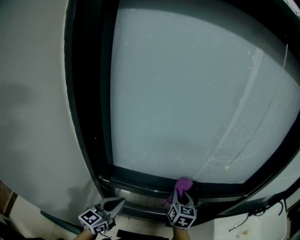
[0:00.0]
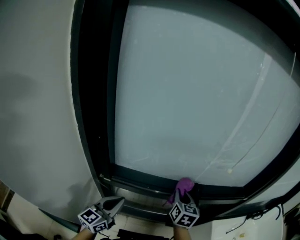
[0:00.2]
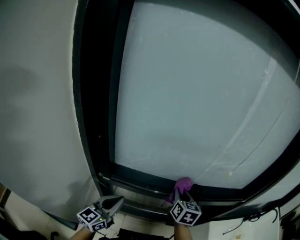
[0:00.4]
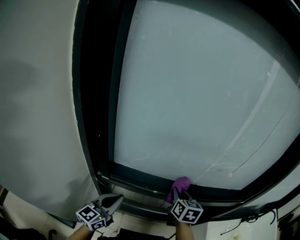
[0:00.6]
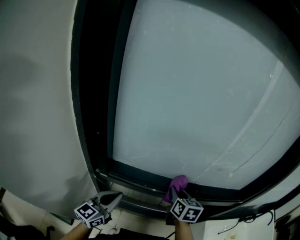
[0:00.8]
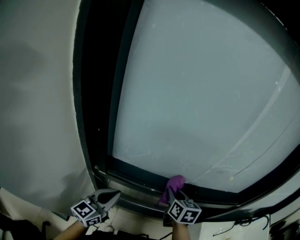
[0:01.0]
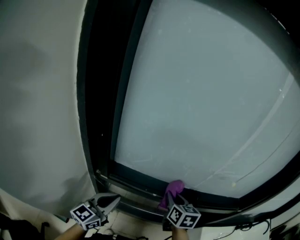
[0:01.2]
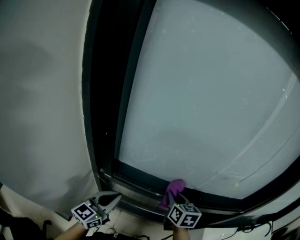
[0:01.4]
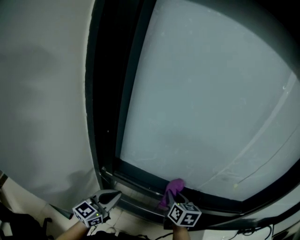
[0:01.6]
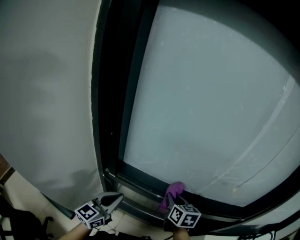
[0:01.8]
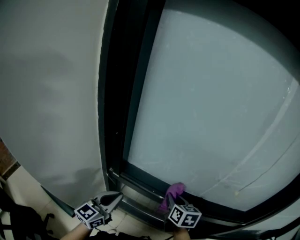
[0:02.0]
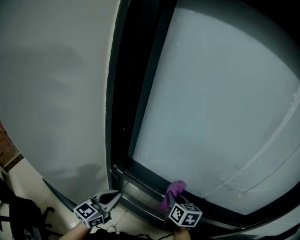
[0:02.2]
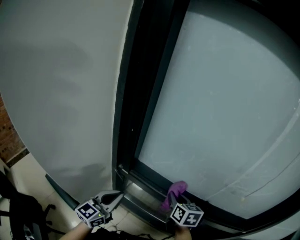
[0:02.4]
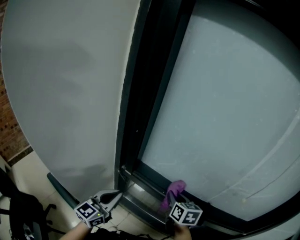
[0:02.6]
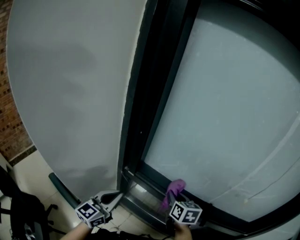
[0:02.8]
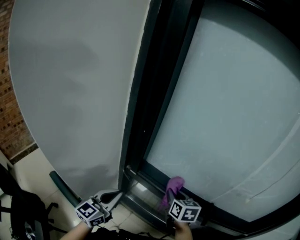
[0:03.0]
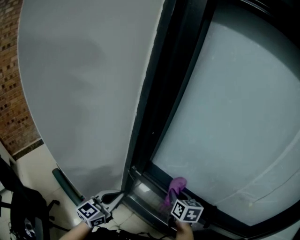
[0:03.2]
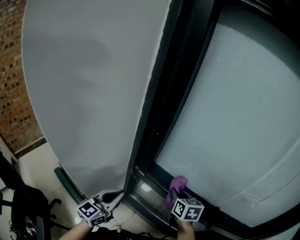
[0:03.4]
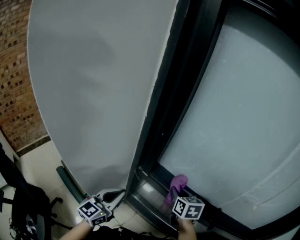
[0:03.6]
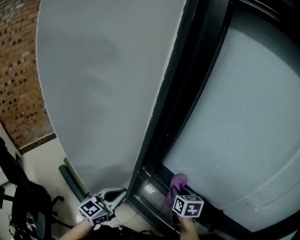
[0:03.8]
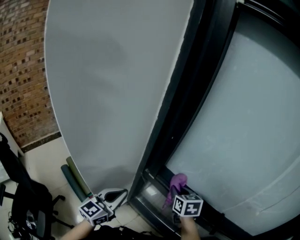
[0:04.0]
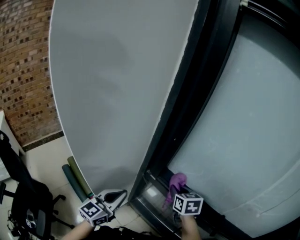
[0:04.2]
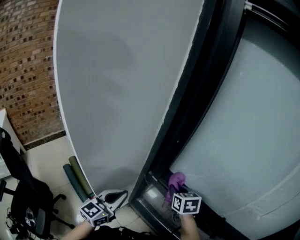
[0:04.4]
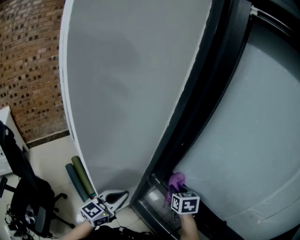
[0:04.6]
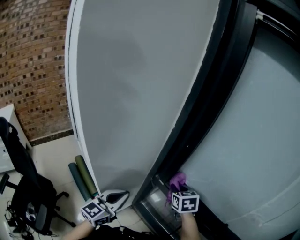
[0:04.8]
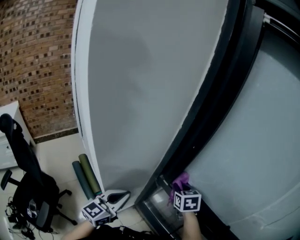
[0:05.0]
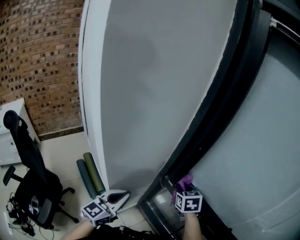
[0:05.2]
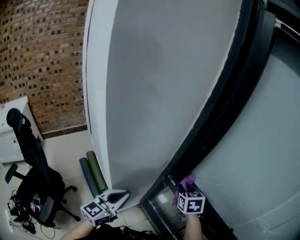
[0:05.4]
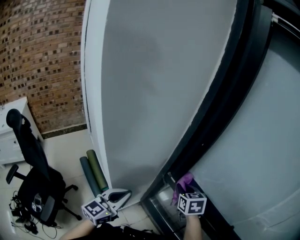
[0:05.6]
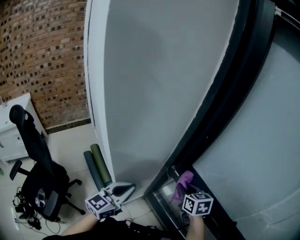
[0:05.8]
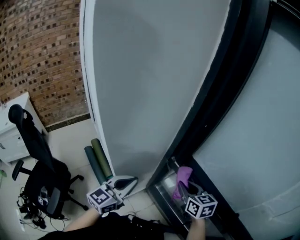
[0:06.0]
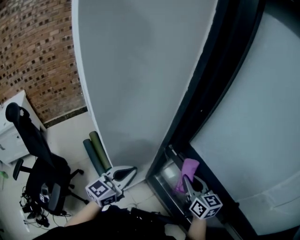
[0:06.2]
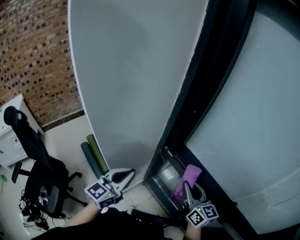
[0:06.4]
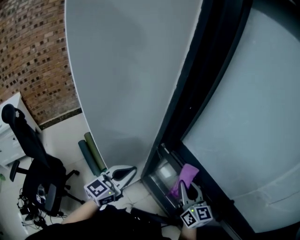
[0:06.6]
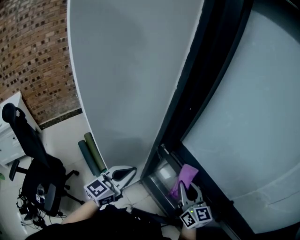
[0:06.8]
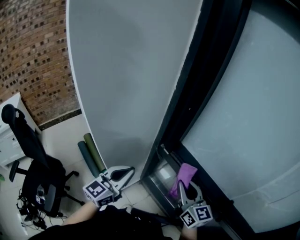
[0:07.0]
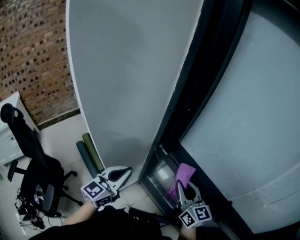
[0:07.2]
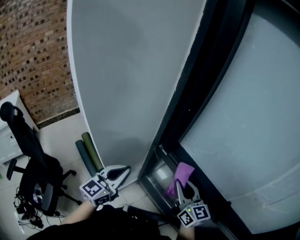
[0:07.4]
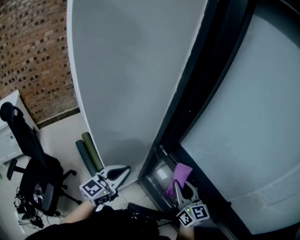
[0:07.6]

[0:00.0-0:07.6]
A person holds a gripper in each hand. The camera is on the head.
0:00.0 to 0:01.6: The right gripper moves to the left, about 5 cm, and swivels about 20 degrees.
0:01.6 to 0:03.0: Both grippers move to the left, some 5 cm.
0:03.0 to 0:04.6: The left gripper shifts about 5 cm to the left. Meanwhile the right gripper shifts approximately 10 cm to the left, and rotates approximately 30 degrees.
0:04.6 to 0:06.0: The right gripper travels backward by about 10 cm, and changes its angle by some 20 degrees.
0:06.0 to 0:07.6: The right gripper shifts roughly 5 cm backward, and swivels roughly 20 degrees.

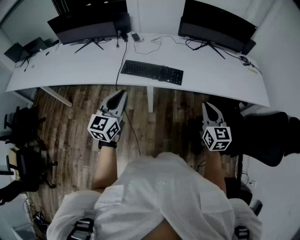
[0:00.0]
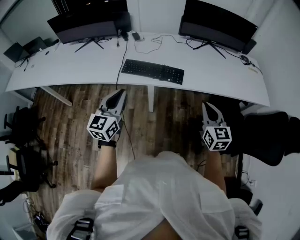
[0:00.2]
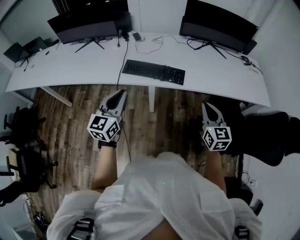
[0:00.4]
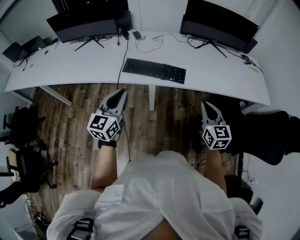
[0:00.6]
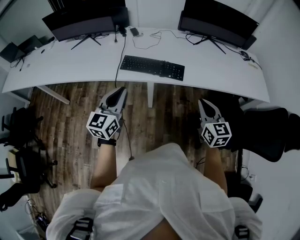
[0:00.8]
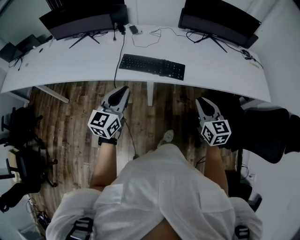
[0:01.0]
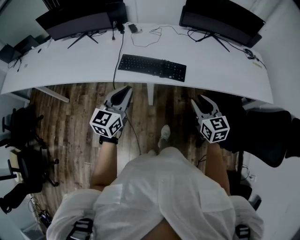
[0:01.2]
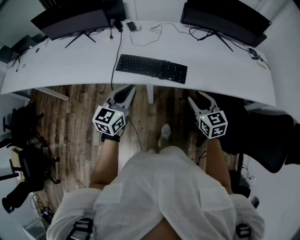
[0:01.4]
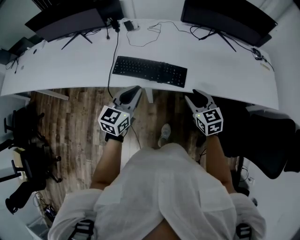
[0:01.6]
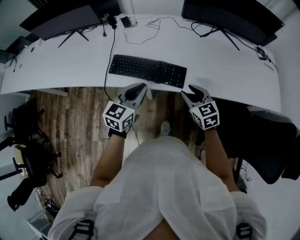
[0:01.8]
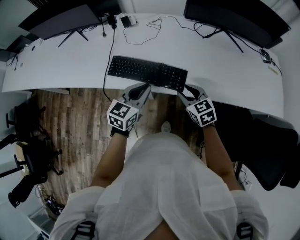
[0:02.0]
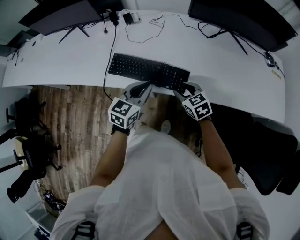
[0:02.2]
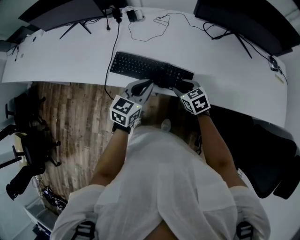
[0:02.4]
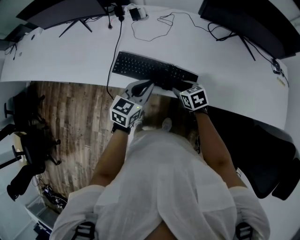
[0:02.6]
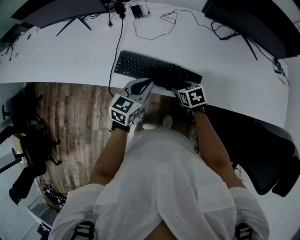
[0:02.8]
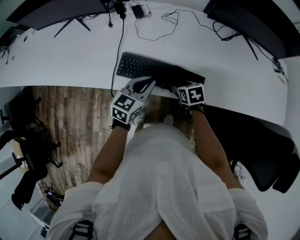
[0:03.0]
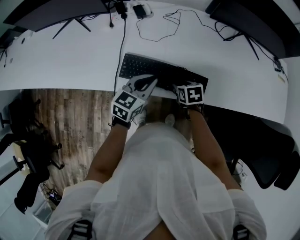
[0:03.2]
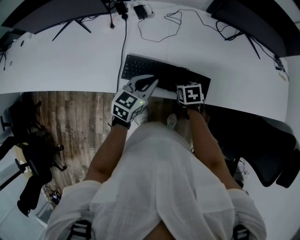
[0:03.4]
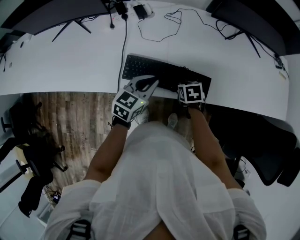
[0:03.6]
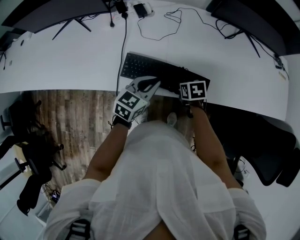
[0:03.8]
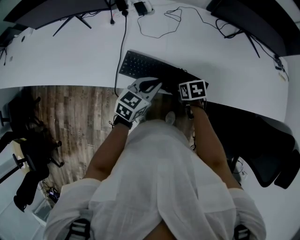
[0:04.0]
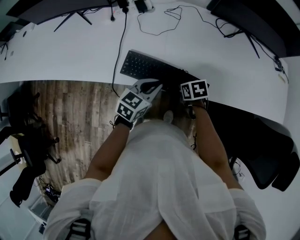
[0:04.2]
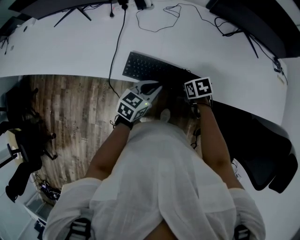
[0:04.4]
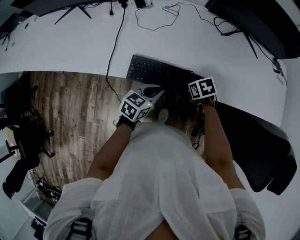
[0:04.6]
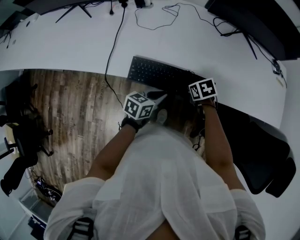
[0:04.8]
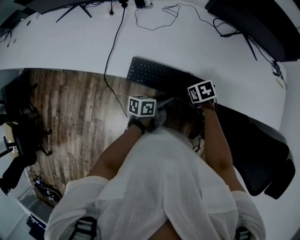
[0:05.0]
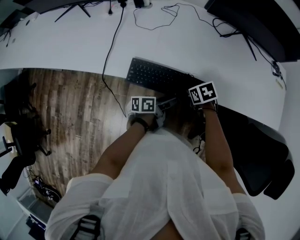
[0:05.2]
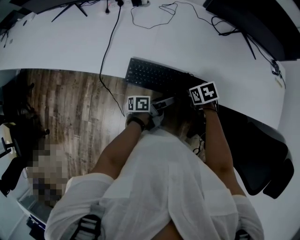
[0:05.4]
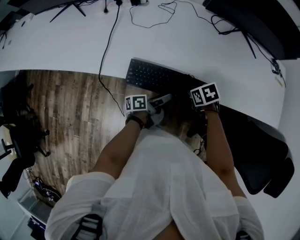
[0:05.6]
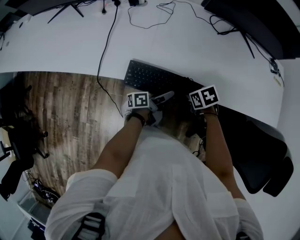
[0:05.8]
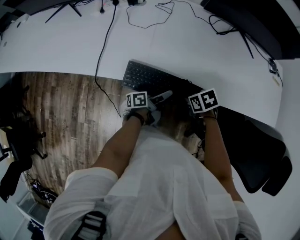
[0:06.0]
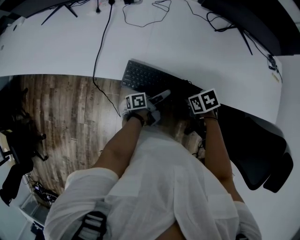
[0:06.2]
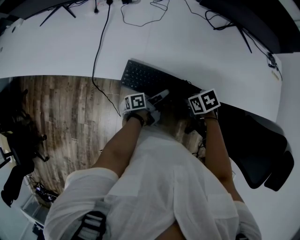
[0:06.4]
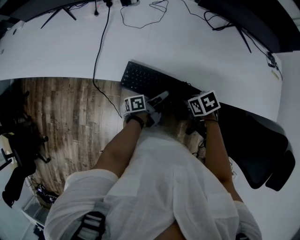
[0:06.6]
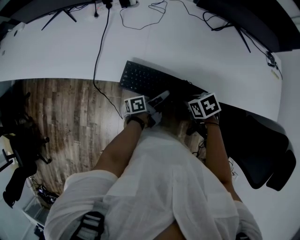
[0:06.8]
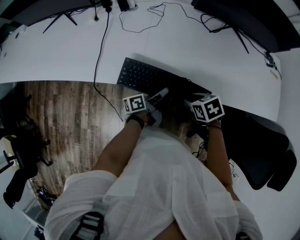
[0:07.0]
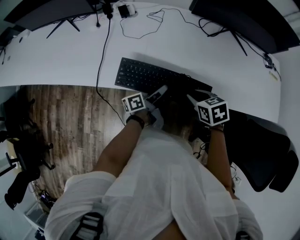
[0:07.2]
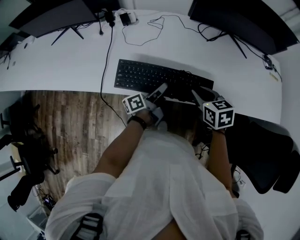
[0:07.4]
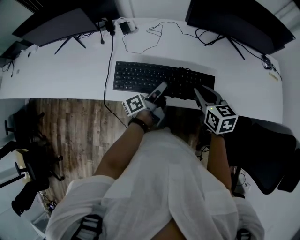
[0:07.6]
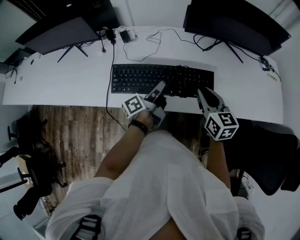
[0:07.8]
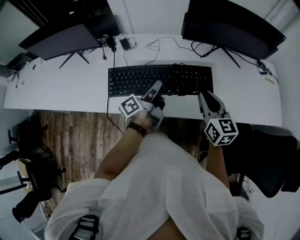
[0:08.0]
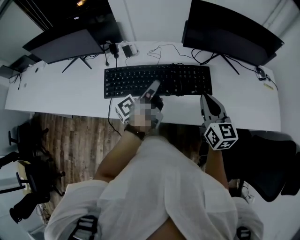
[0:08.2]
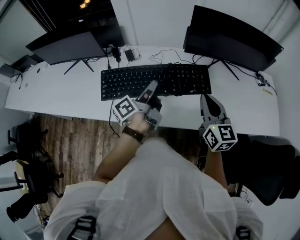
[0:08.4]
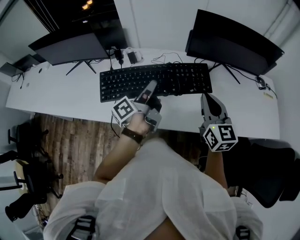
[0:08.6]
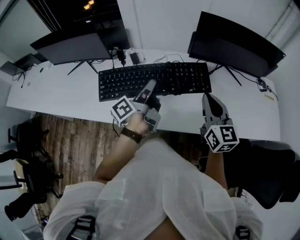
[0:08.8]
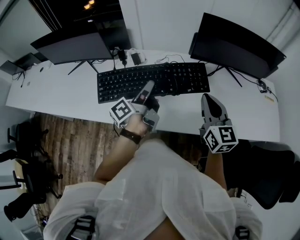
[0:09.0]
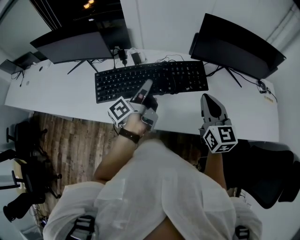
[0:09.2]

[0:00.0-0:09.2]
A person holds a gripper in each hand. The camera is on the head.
0:00.0 to 0:01.6: The right gripper heads forward and downward, covering about 20 cm, swivels about 20 degrees, and opens. Meanwhile the left gripper is displaced forward, downward and to the right by roughly 20 cm.
0:01.6 to 0:03.0: The left gripper moves forward and downward, some 20 cm; the right gripper goes approximately 25 cm downward, forward and to the left, and points its fingers some 30 degrees further downward.
0:03.0 to 0:04.6: The left gripper travels backward, to the right and downward by some 15 cm, while the right gripper moves to the right and backward, some 10 cm, and closes.
0:04.6 to 0:06.2: The right gripper ends up approximately 5 cm from where it was, while the left gripper shifts approximately 10 cm downward, rotates around the line of its fingers by roughly 60 degrees, counterclockwise from behind, and opens up.
0:06.2 to 0:07.6: Both grippers travel together upward, about 20 cm. The right gripper angles its fingers upward, by about 40 degrees.
0:07.6 to 0:09.2: The right gripper heads upward, covering some 15 cm, rotates some 30 degrees, and closes up. The left gripper shifts roughly 20 cm upward and to the left.

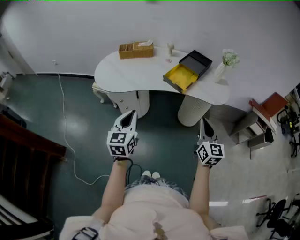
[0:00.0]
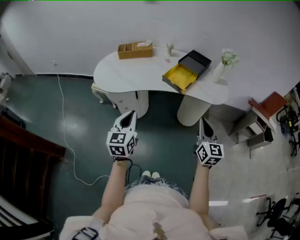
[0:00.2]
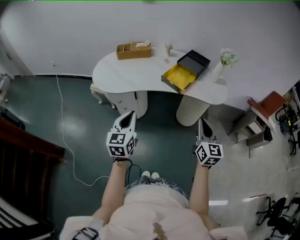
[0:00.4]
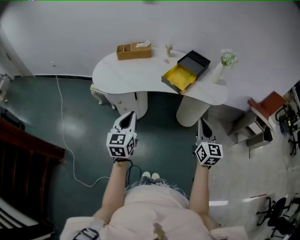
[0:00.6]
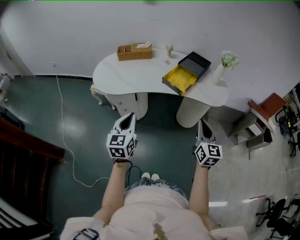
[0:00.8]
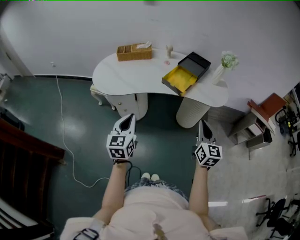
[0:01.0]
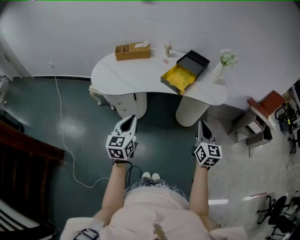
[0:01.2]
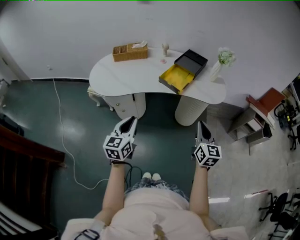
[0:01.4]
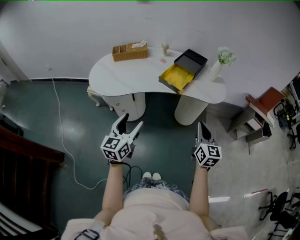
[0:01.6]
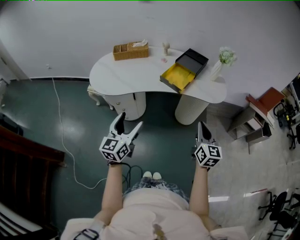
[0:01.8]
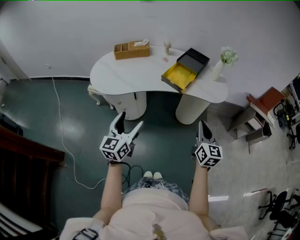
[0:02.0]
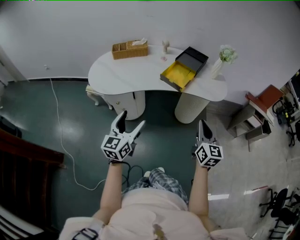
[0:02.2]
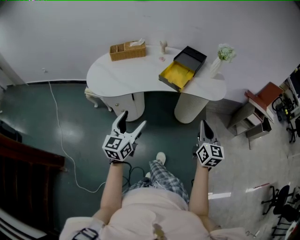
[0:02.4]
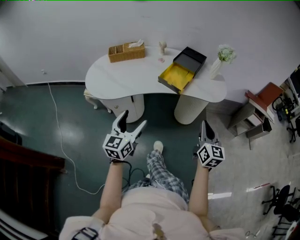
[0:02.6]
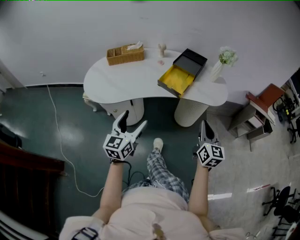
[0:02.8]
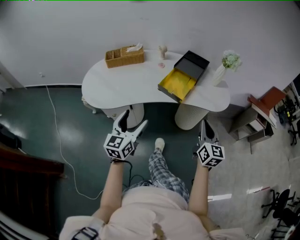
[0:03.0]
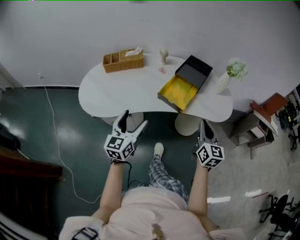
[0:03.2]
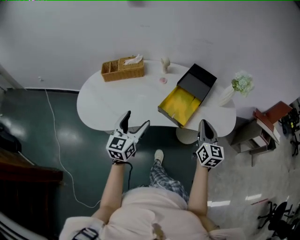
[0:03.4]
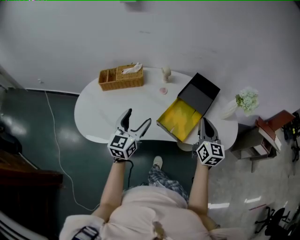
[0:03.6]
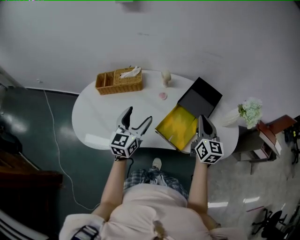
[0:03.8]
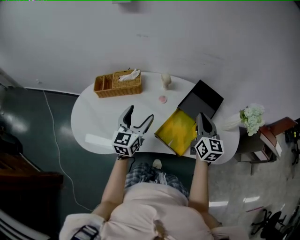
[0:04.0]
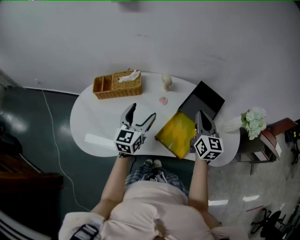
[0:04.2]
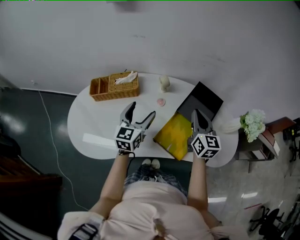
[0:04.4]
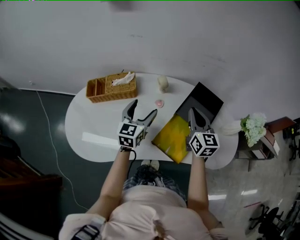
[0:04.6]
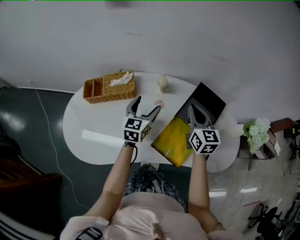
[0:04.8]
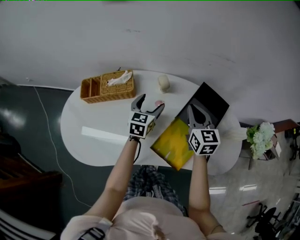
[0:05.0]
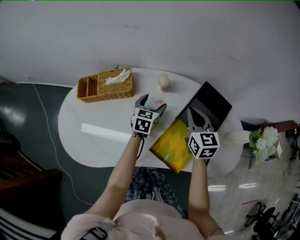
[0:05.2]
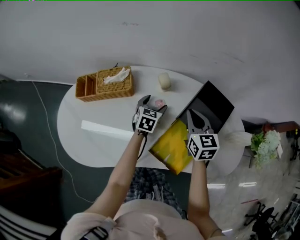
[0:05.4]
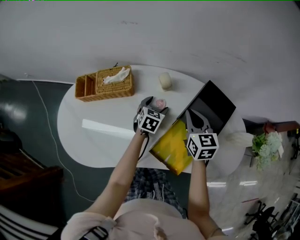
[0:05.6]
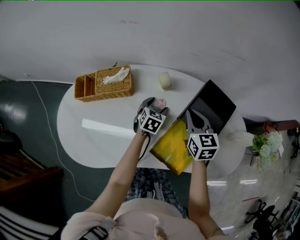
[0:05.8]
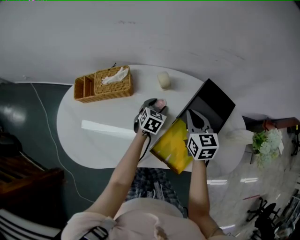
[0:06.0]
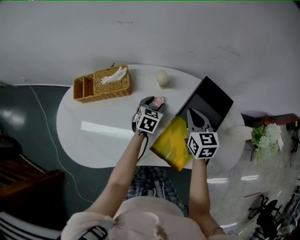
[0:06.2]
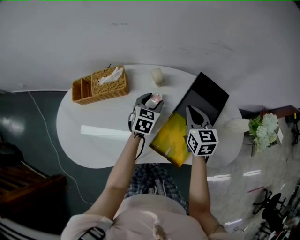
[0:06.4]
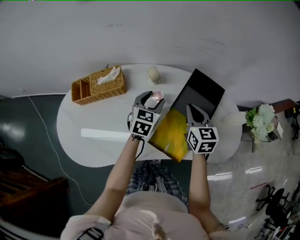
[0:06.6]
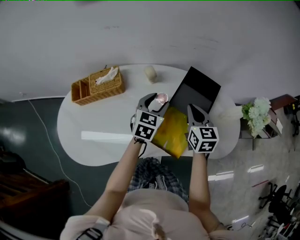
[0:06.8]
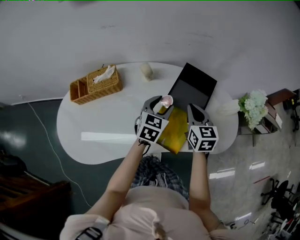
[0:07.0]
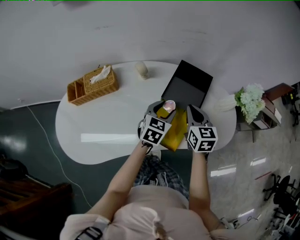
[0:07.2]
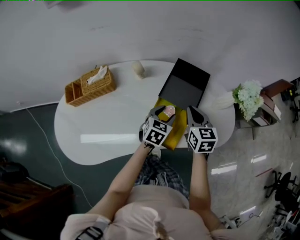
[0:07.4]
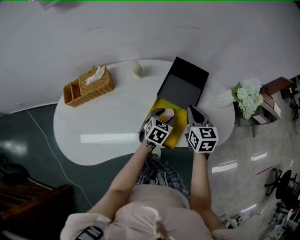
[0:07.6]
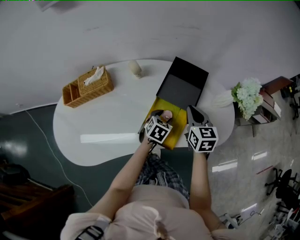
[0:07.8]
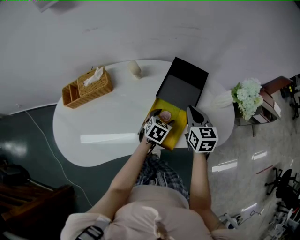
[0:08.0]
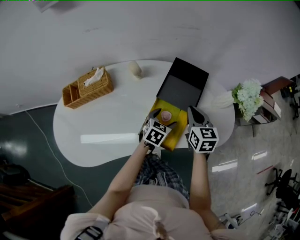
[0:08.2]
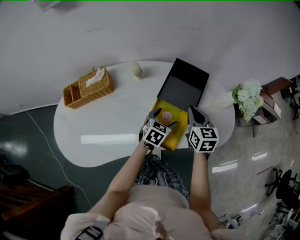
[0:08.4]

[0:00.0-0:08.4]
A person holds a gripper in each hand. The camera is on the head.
0:00.0 to 0:01.4: The grippers stay close to where they were, moving slightly.
0:01.4 to 0:02.8: The left gripper is displaced forward by some 5 cm, and opens its fingers.
0:02.8 to 0:04.2: Both grippers are carried forward, about 50 cm.
0:04.2 to 0:05.6: The left gripper moves downward and forward, roughly 30 cm, and tilts its fingers roughly 40 degrees downward. The right gripper goes about 15 cm forward, downward and to the left, and swivels some 20 degrees.
0:05.6 to 0:07.0: The right gripper goes roughly 10 cm to the right and backward; the left gripper moves upward, to the right and backward, about 20 cm, and closes its fingers.
0:07.0 to 0:08.4: The right gripper travels to the right by approximately 5 cm, while the left gripper is displaced downward and to the right by about 10 cm, and opens.
